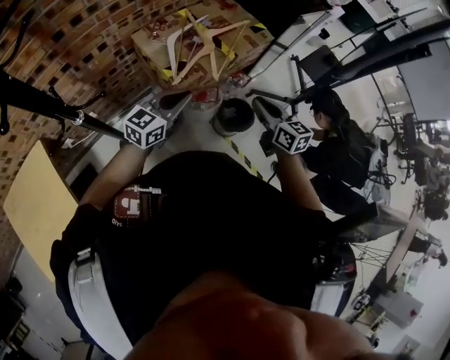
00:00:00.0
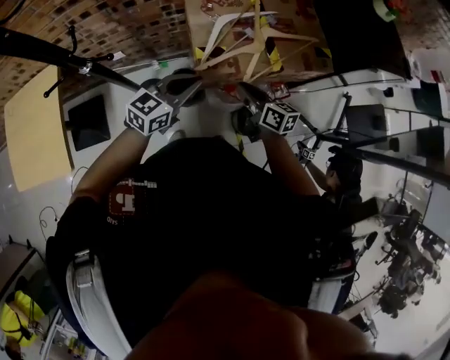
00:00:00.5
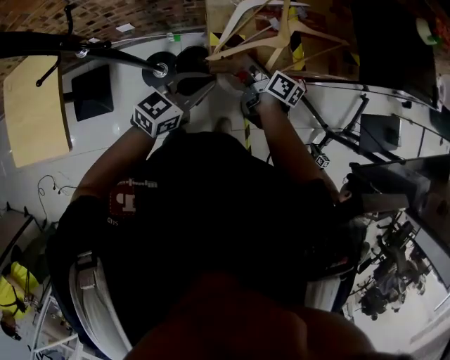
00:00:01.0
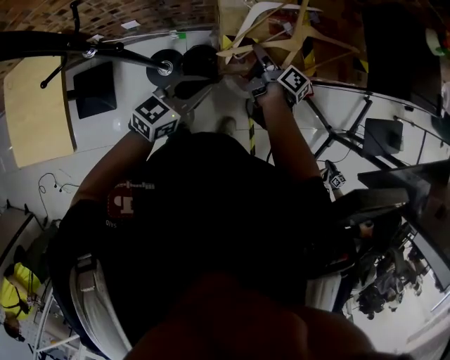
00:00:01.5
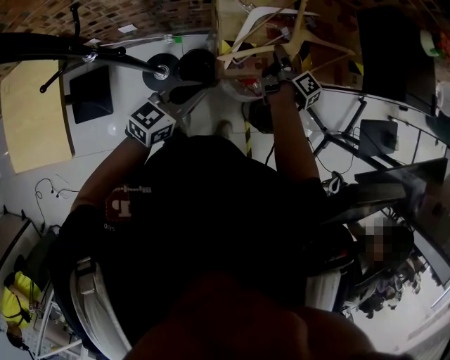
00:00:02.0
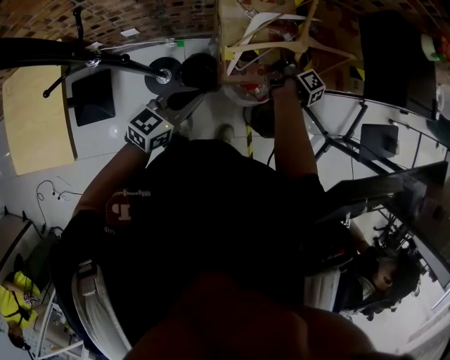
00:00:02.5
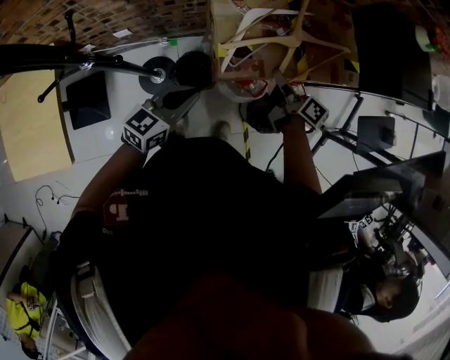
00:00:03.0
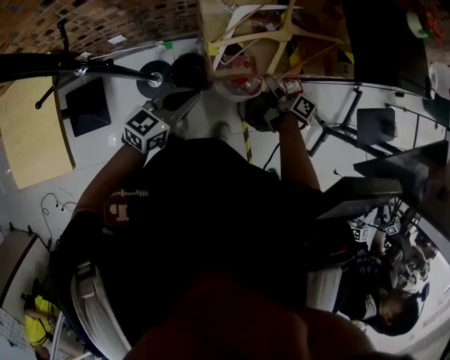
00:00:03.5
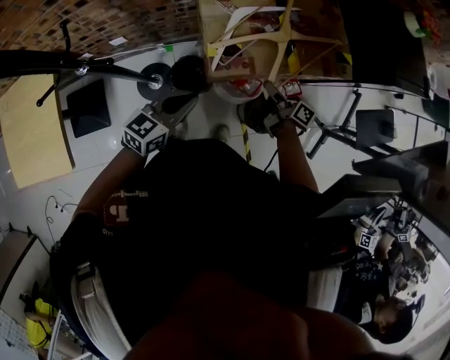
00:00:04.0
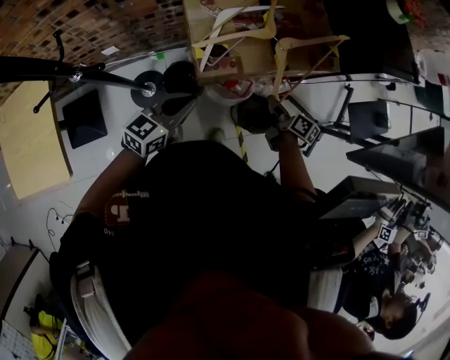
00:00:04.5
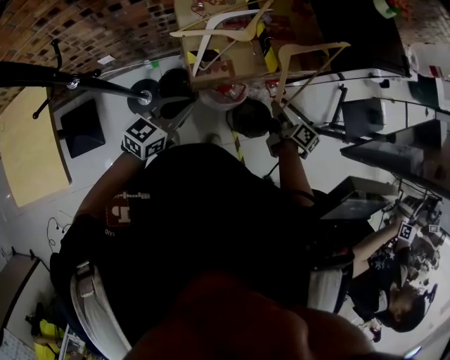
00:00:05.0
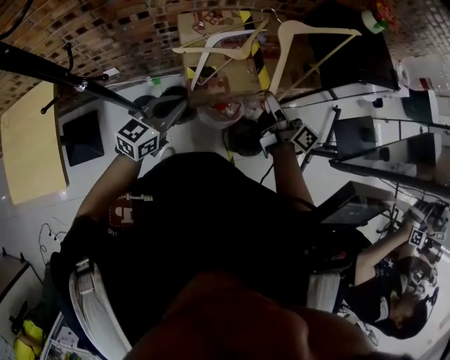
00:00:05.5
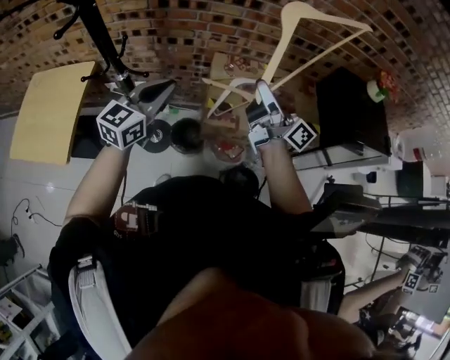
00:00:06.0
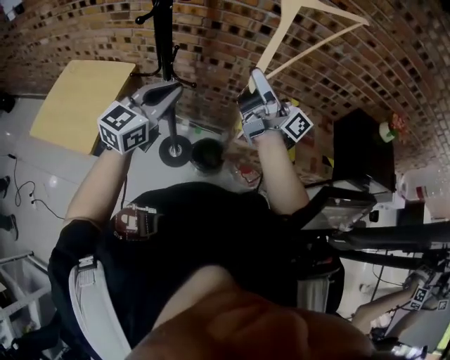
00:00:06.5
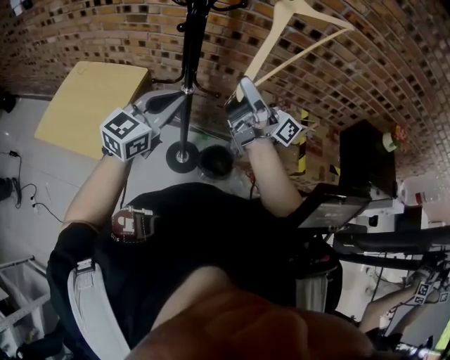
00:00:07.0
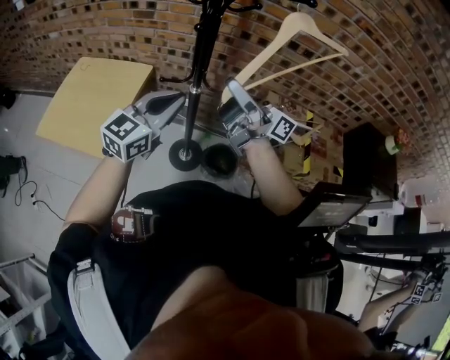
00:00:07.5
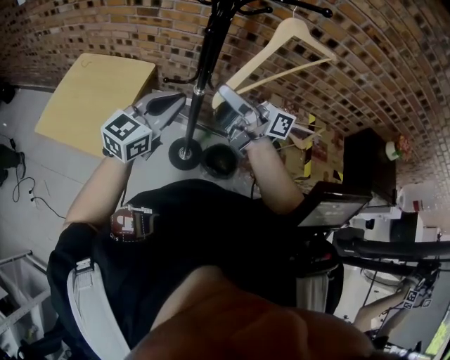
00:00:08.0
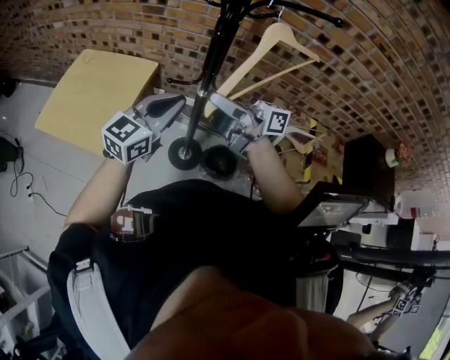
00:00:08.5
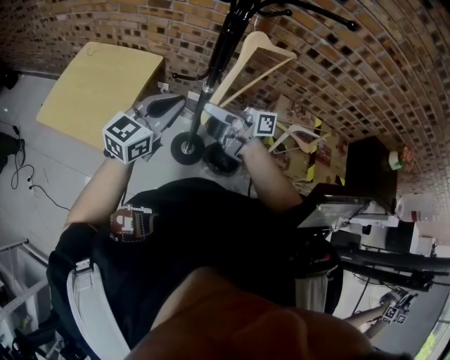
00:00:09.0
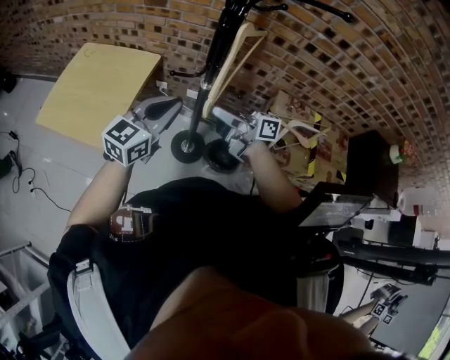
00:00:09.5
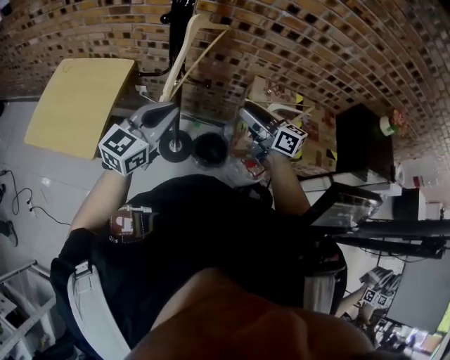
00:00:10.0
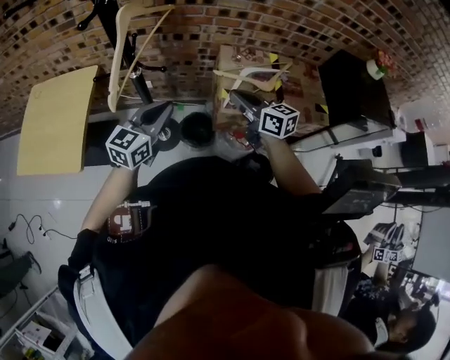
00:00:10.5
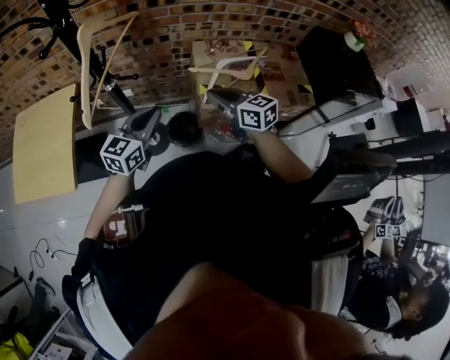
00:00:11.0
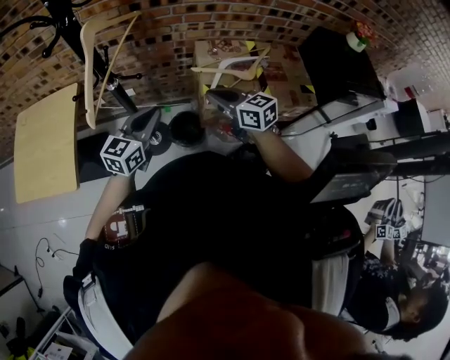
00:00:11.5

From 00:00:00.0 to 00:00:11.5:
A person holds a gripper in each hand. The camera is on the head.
From 00:00:00.0 to 00:00:02.0: The right gripper moves roughly 35 cm, rolls clockwise, seen from behind, by approximately 60 degrees, and opens. Meanwhile the left gripper moves downward, roughly 10 cm, and turns by some 30 degrees.
From 00:00:02.0 to 00:00:04.0: The right gripper heads backward and to the right, covering about 10 cm, and closes up.
From 00:00:04.0 to 00:00:06.0: The right gripper moves upward, approximately 40 cm, and angles its fingers upward, by about 40 degrees. The left gripper travels upward by some 20 cm, and swivels about 30 degrees.
From 00:00:06.0 to 00:00:07.5: The two grippers go about 30 cm to the left. The right gripper turns by some 30 degrees.
From 00:00:07.5 to 00:00:09.5: The left gripper moves downward, roughly 5 cm; the right gripper travels downward by approximately 15 cm, changes its angle by about 20 degrees, and opens.
From 00:00:09.5 to 00:00:11.5: The right gripper moves about 30 cm, tips its fingers downward by some 30 degrees, and closes up. The left gripper ends up roughly 25 cm from where it was.

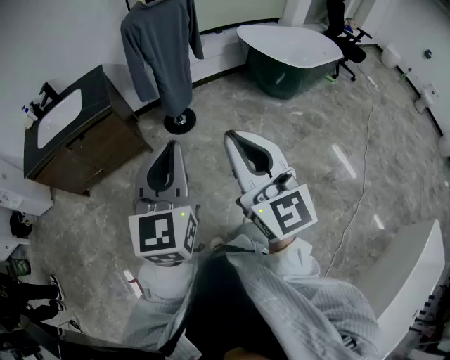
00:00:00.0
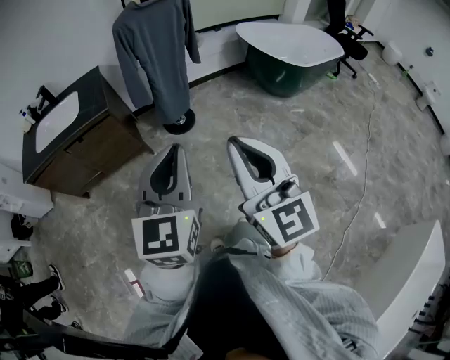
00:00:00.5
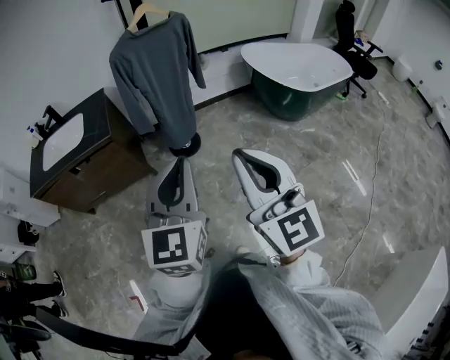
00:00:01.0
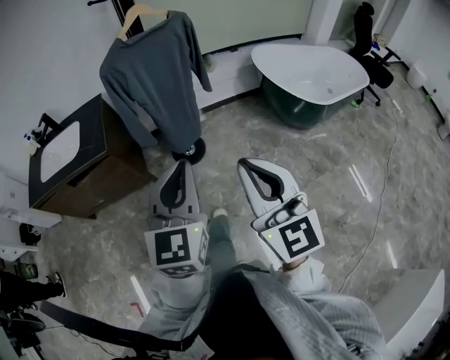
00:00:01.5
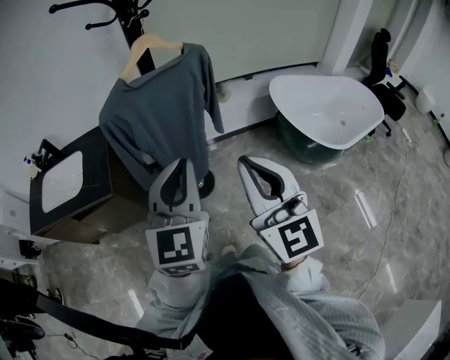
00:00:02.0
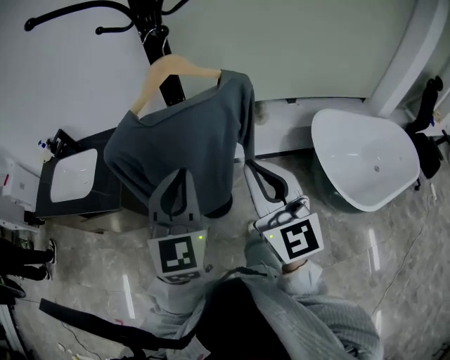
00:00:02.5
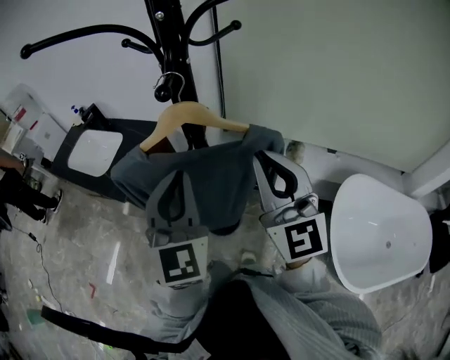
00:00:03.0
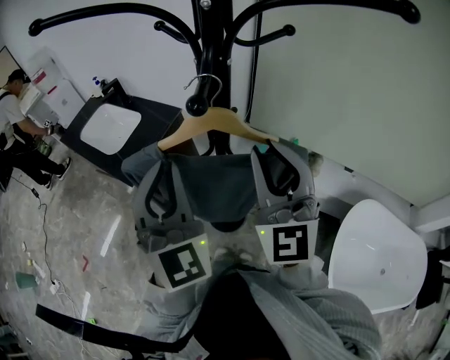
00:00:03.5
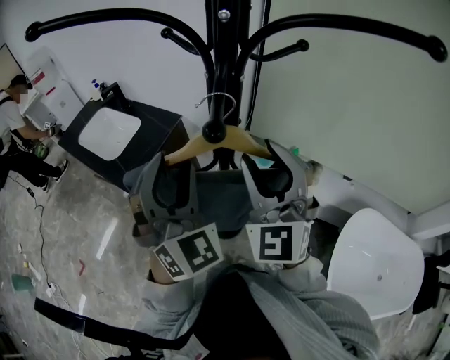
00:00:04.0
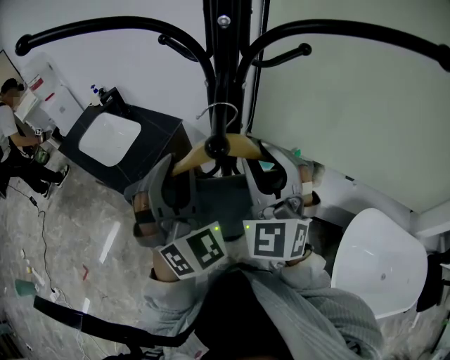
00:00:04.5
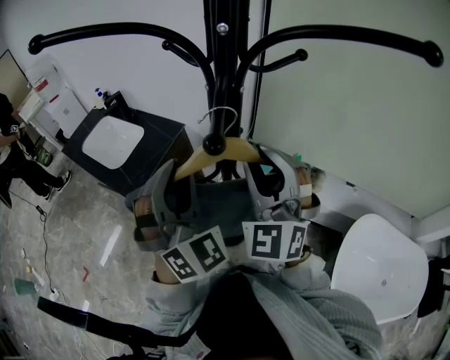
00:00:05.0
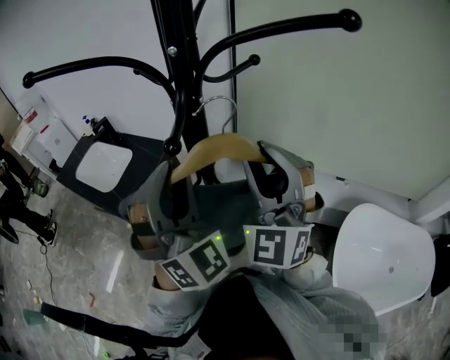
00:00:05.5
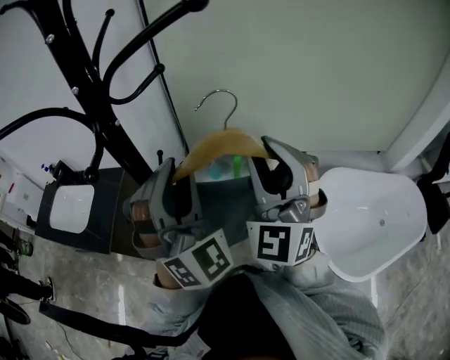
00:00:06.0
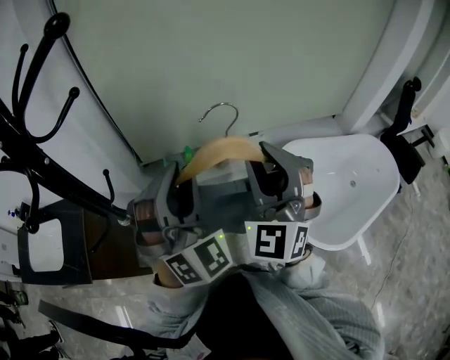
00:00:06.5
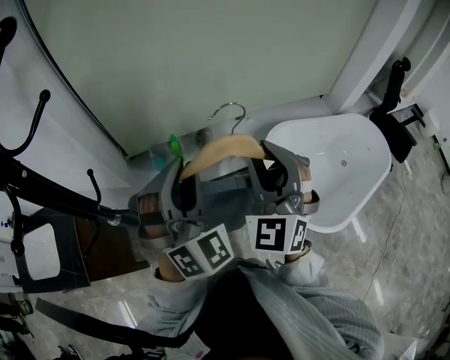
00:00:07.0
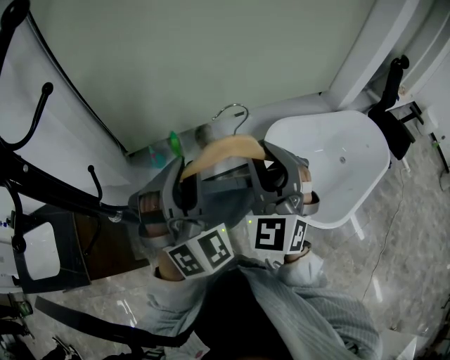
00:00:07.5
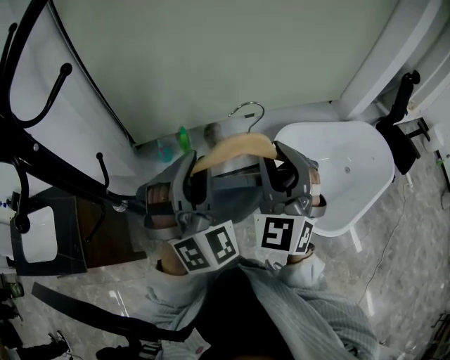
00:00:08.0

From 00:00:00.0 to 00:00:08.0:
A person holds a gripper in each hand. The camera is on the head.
From 00:00:00.0 to 00:00:02.0: The pair of grippers is taken forward, some 50 cm.
From 00:00:02.0 to 00:00:04.0: The right gripper moves about 40 cm, changes its angle by approximately 40 degrees, and opens up. The left gripper changes place by roughly 35 cm, swivels some 70 degrees, and opens up.
From 00:00:04.0 to 00:00:06.0: The right gripper changes place by roughly 20 cm, and swivels approximately 30 degrees; the left gripper changes place by some 20 cm, and swivels some 30 degrees.
From 00:00:06.0 to 00:00:08.0: Both grippers travel together to the right and downward, approximately 15 cm. The right gripper changes its angle by approximately 30 degrees. The left gripper changes its angle by roughly 30 degrees.

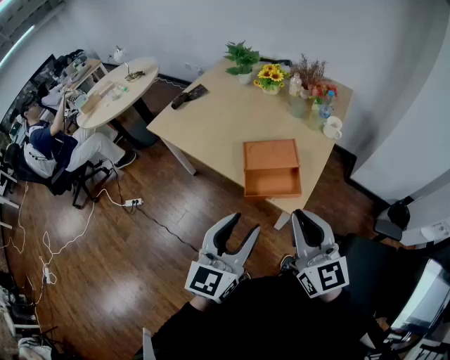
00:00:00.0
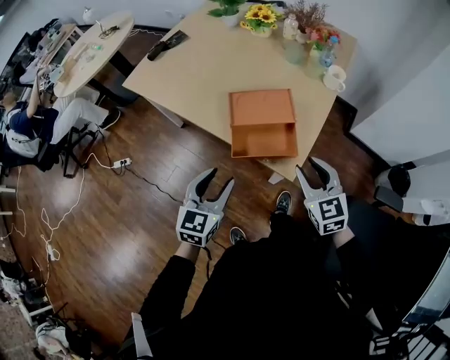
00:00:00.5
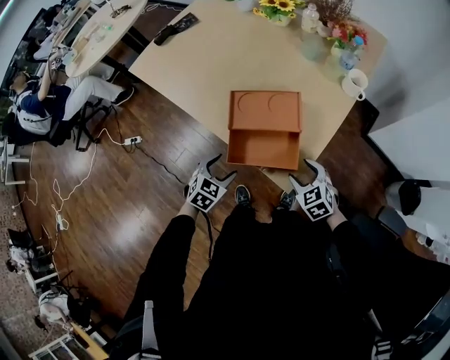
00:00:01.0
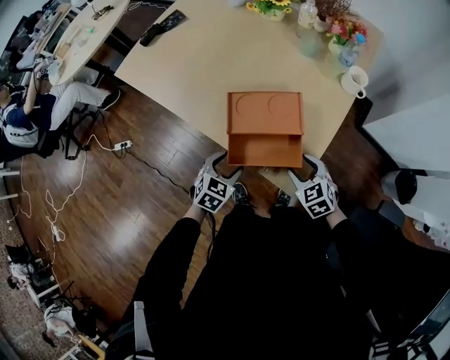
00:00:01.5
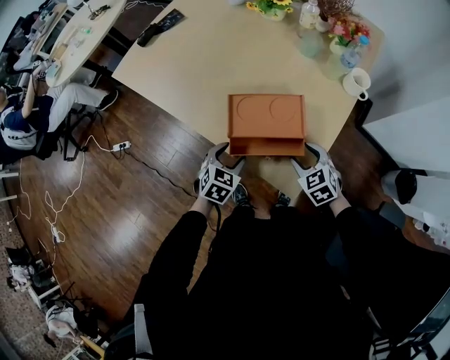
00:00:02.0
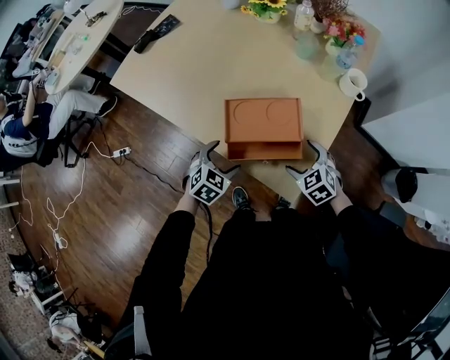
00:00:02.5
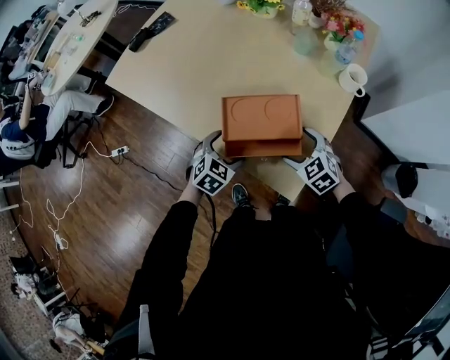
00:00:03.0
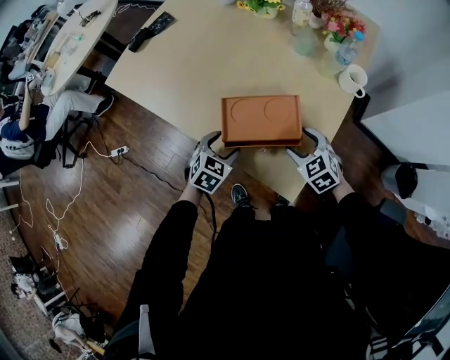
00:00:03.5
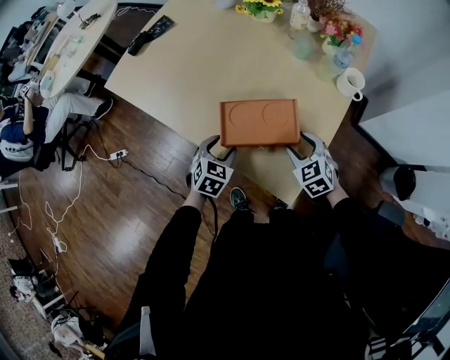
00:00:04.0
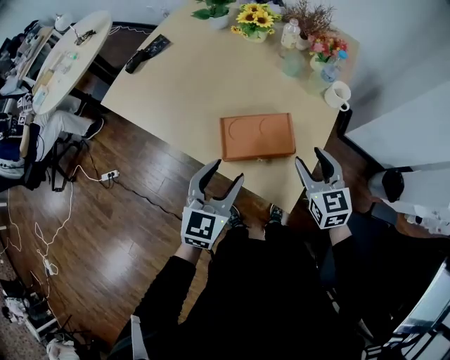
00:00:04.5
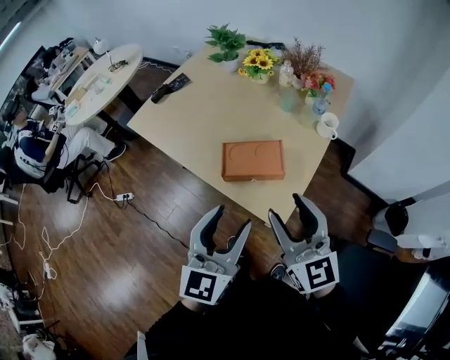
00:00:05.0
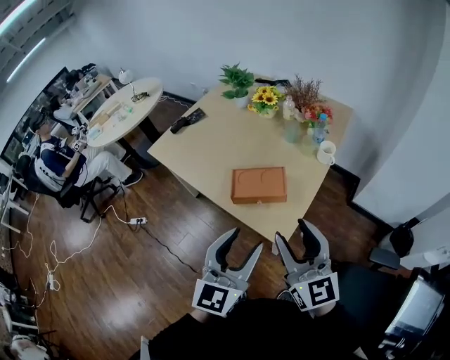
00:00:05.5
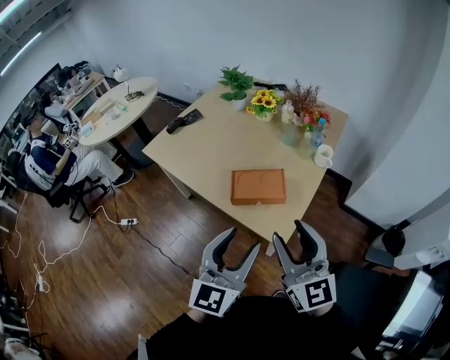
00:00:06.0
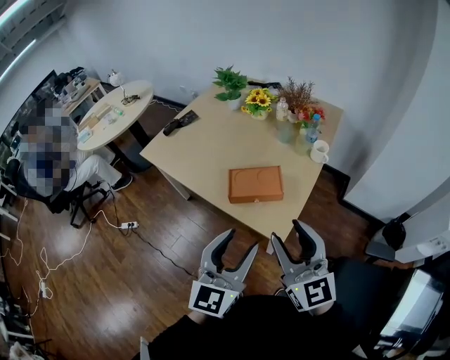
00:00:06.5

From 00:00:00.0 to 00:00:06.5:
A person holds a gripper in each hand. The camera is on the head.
From 00:00:00.0 to 00:00:02.0: The grippers both shift downward and forward by roughly 40 cm. The right gripper angles its fingers downward, by approximately 50 degrees, and opens. The left gripper tips its fingers downward by approximately 40 degrees.
From 00:00:02.0 to 00:00:04.5: The two grippers go roughly 20 cm upward. The left gripper turns by approximately 30 degrees, and opens, then closes again, while the right gripper rotates about 30 degrees, and opens, then closes again.
From 00:00:04.5 to 00:00:06.5: The left gripper goes approximately 25 cm backward and upward, and rotates approximately 20 degrees. The right gripper heads upward and backward, covering approximately 30 cm, and angles its fingers upward, by roughly 30 degrees.
